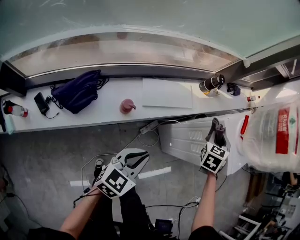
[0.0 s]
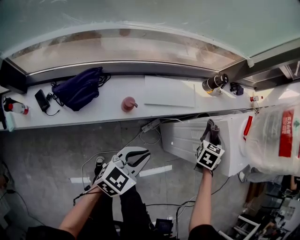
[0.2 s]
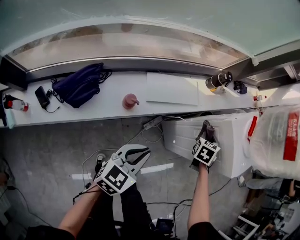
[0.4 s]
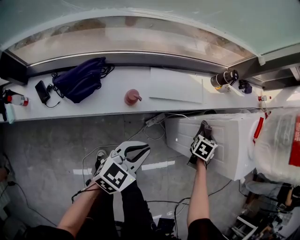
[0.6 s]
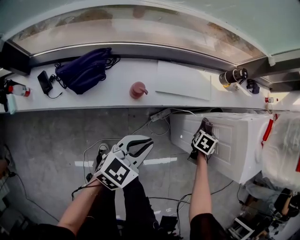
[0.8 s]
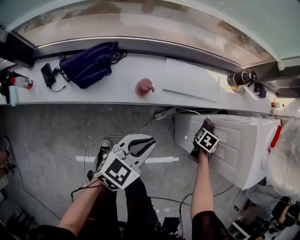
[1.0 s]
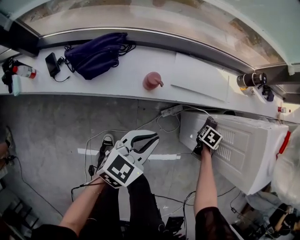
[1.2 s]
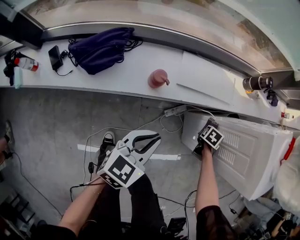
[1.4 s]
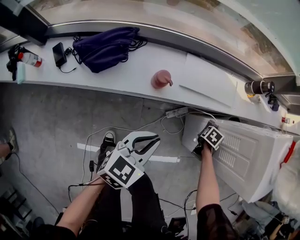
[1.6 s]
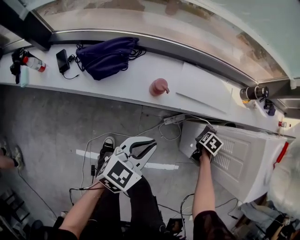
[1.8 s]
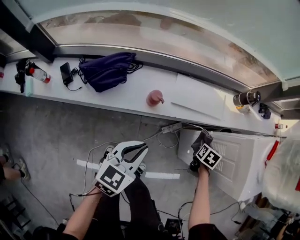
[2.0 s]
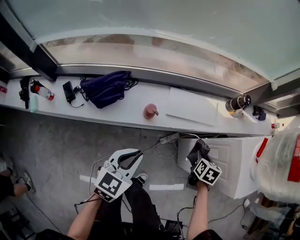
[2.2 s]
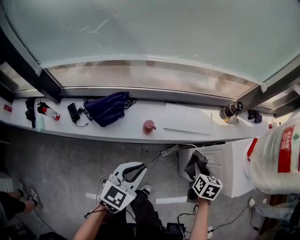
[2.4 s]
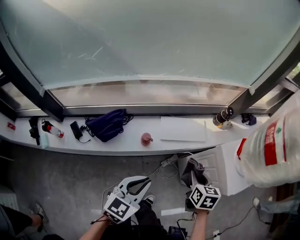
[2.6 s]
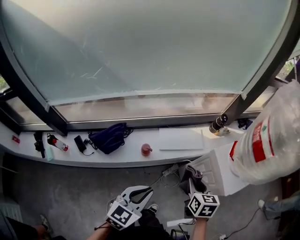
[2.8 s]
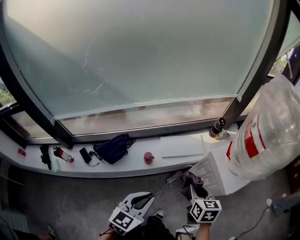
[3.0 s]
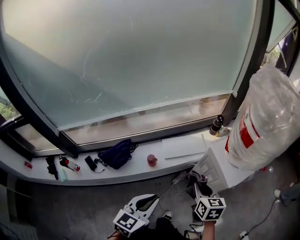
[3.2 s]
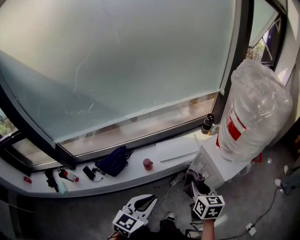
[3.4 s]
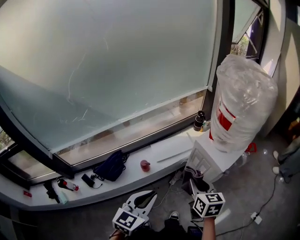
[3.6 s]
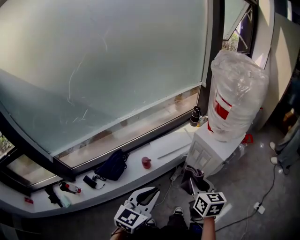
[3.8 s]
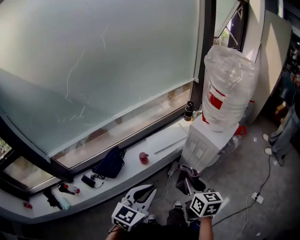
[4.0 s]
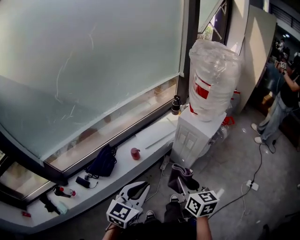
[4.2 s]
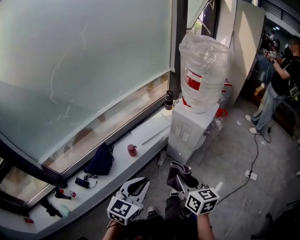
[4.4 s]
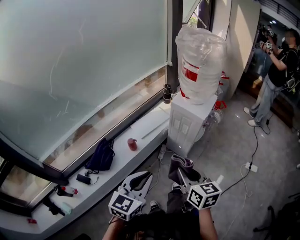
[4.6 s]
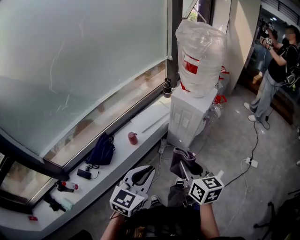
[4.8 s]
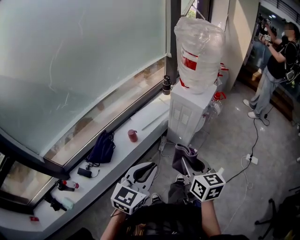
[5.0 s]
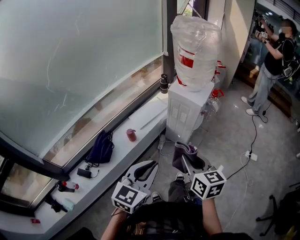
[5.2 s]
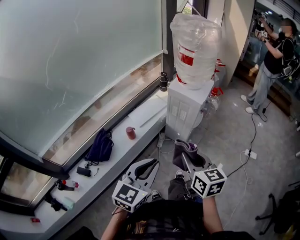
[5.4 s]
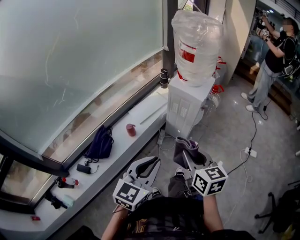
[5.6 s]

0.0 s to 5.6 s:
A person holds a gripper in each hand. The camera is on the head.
0.0 to 1.4 s: The right gripper shifts about 35 cm downward, and rotates roughly 30 degrees. The left gripper moves downward, some 10 cm.
1.4 to 2.8 s: The left gripper travels upward by some 30 cm; the right gripper is displaced upward by approximately 40 cm, and changes its angle by roughly 40 degrees.
2.8 to 4.2 s: The right gripper travels backward and upward by about 30 cm, and changes its angle by some 30 degrees; the left gripper travels backward and upward by approximately 20 cm, and rotates roughly 20 degrees.
4.2 to 5.6 s: The two grippers go some 5 cm backward.

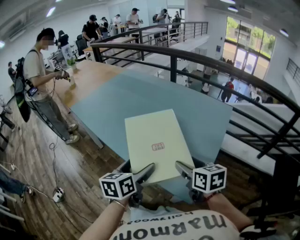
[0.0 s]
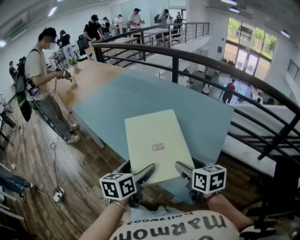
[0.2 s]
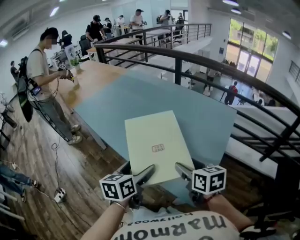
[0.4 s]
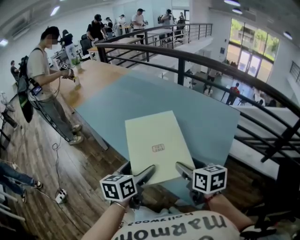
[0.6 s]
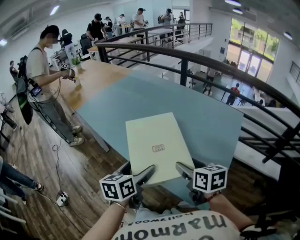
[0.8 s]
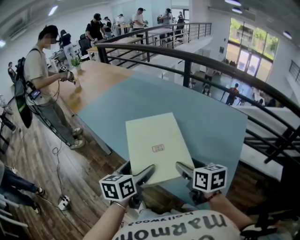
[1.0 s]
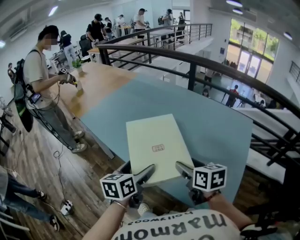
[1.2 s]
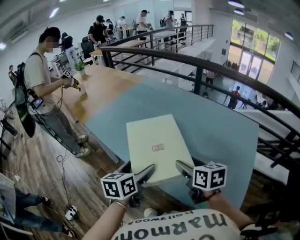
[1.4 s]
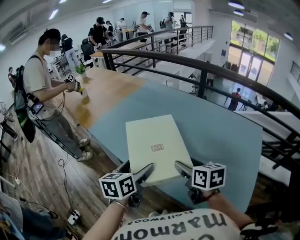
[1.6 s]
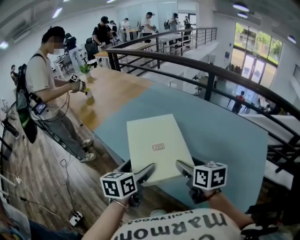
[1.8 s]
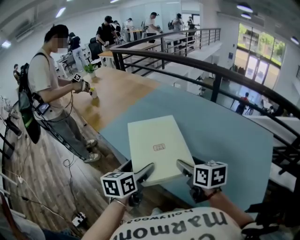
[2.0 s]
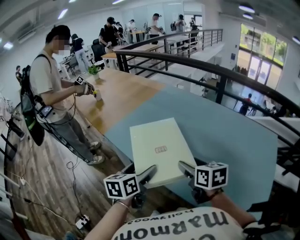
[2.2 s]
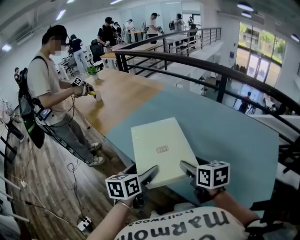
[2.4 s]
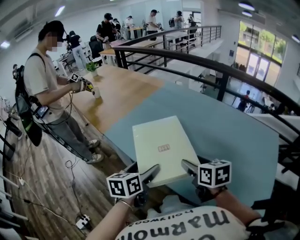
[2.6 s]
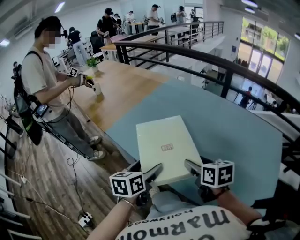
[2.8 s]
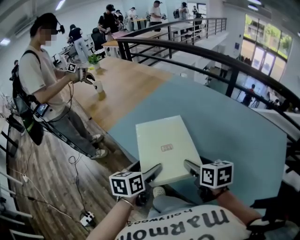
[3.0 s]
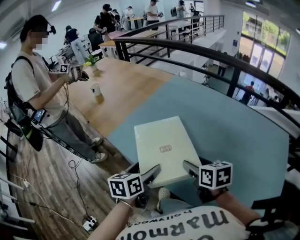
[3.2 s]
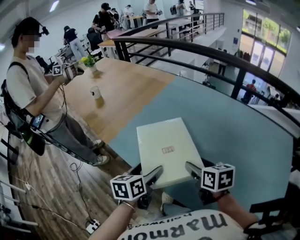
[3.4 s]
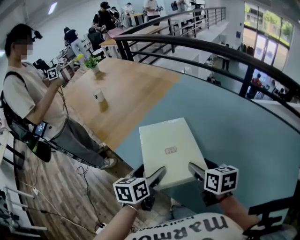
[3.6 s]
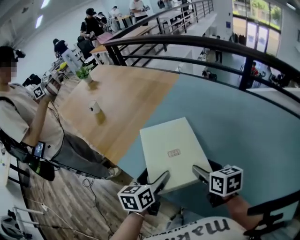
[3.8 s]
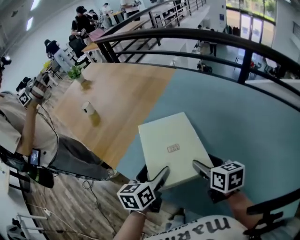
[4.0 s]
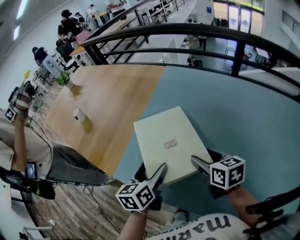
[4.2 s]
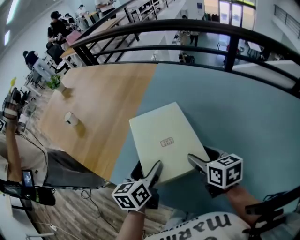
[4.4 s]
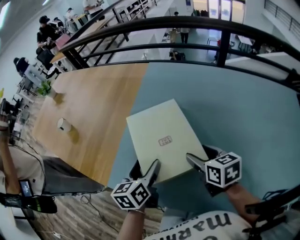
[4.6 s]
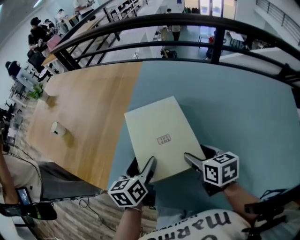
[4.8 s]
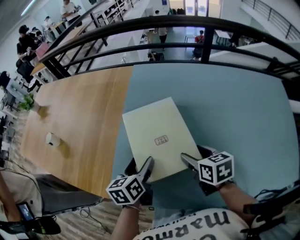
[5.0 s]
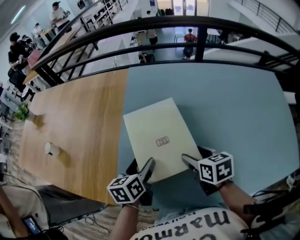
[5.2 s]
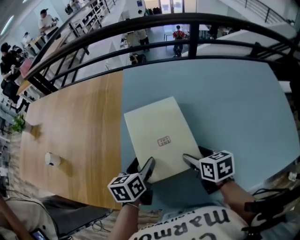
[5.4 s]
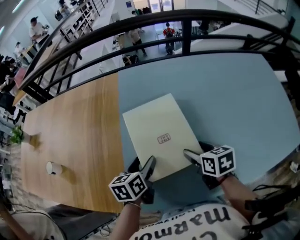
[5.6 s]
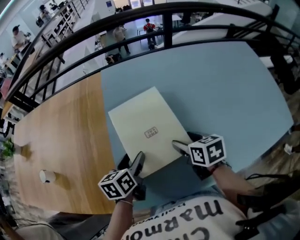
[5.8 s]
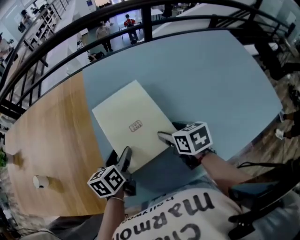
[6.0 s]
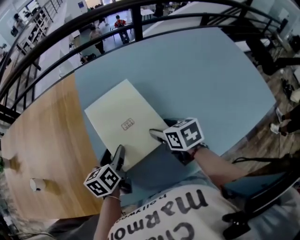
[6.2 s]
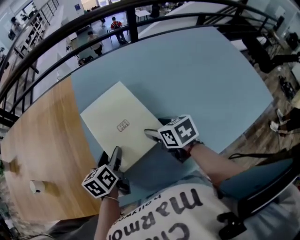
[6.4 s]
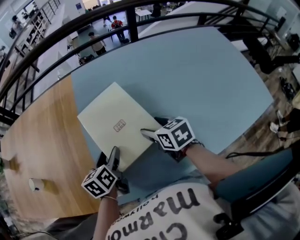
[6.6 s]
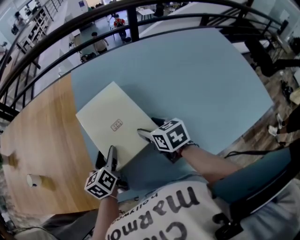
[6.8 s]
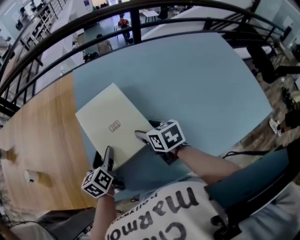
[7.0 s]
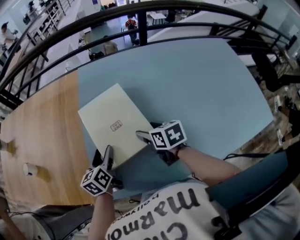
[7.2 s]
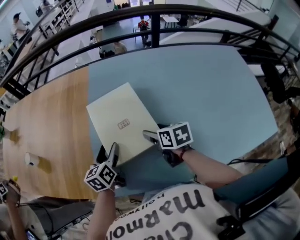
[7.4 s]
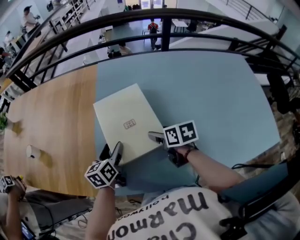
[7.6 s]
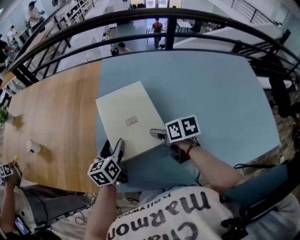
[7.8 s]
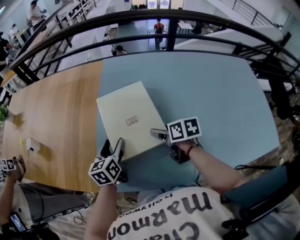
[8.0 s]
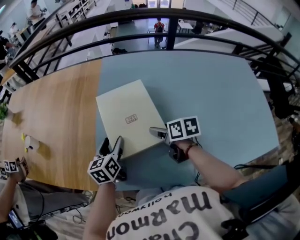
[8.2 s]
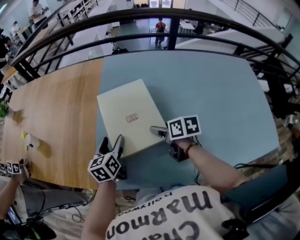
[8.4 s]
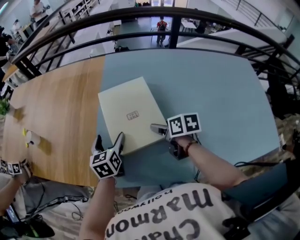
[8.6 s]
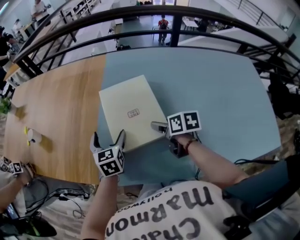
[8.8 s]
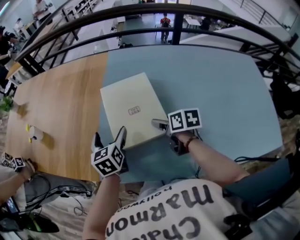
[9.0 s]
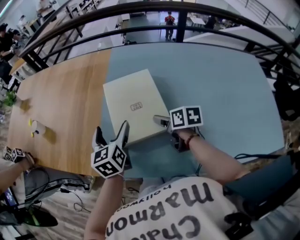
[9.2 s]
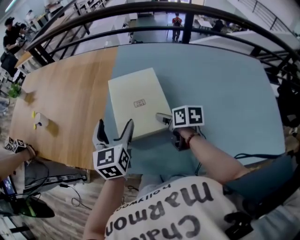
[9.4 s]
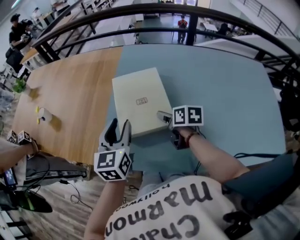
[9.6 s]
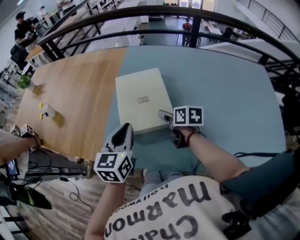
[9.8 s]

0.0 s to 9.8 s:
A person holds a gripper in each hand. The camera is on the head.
0.0 to 1.4 s: The two grippers go some 25 cm to the left and forward.
1.4 to 2.8 s: Both grippers move to the left and forward, about 15 cm.
2.8 to 4.2 s: Both grippers move forward, about 20 cm.
4.2 to 5.6 s: The right gripper shifts approximately 5 cm downward, and rotates roughly 30 degrees; the left gripper changes place by about 15 cm, and rotates about 30 degrees.
5.6 to 8.4 s: The grippers move only a little.
8.4 to 9.8 s: The left gripper moves upward and backward, some 15 cm, and closes up.

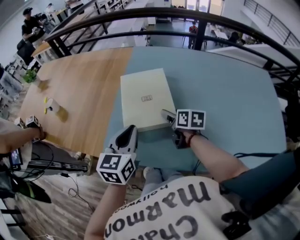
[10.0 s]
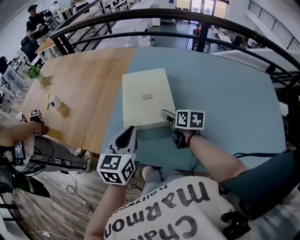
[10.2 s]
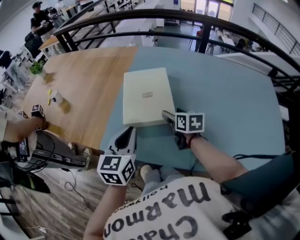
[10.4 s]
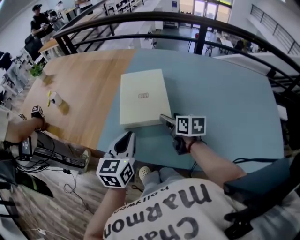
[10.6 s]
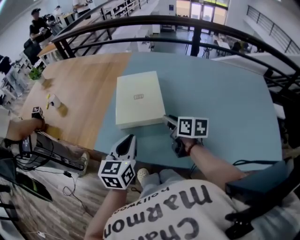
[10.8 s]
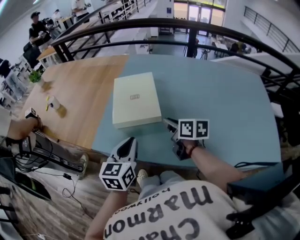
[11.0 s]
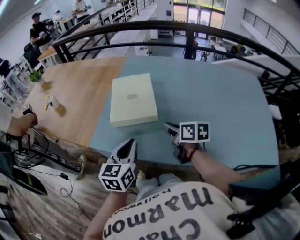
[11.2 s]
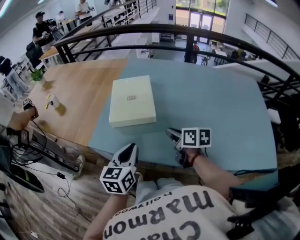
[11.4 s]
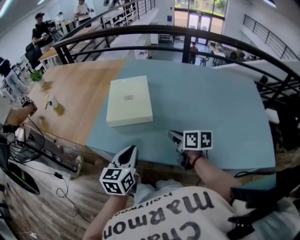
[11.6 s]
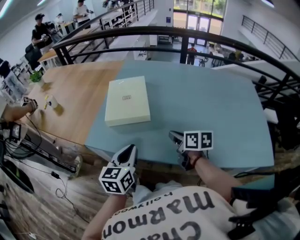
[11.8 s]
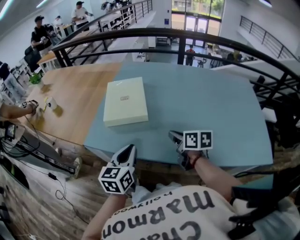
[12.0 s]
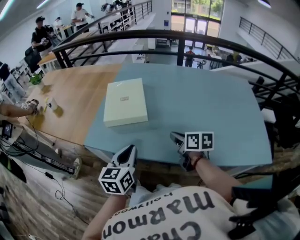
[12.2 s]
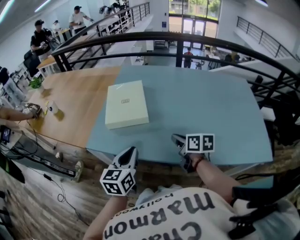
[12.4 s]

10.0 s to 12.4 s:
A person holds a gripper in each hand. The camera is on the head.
10.0 to 11.2 s: The two grippers go roughly 10 cm backward. The right gripper closes its fingers.
11.2 to 12.4 s: The right gripper heads backward and to the right, covering about 10 cm. Meanwhile the left gripper changes place by roughly 5 cm.

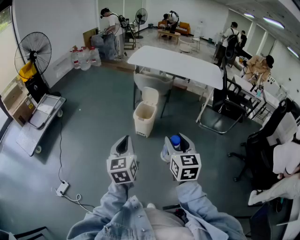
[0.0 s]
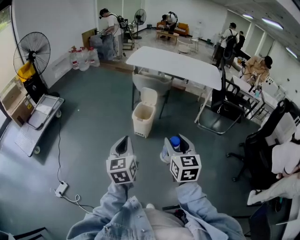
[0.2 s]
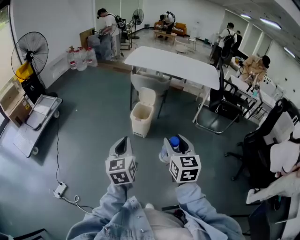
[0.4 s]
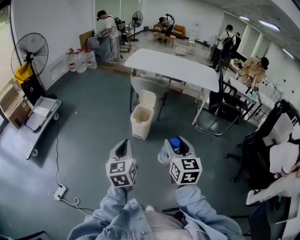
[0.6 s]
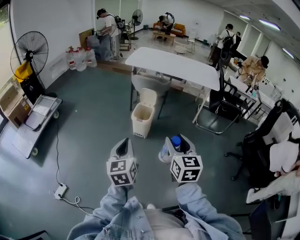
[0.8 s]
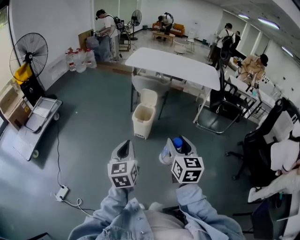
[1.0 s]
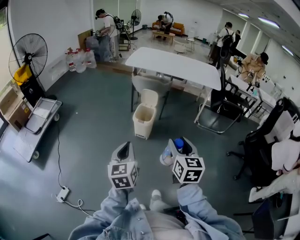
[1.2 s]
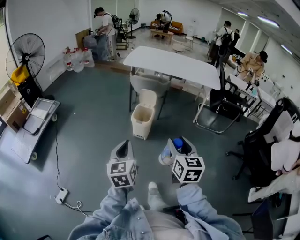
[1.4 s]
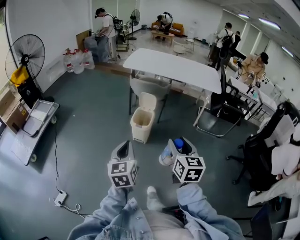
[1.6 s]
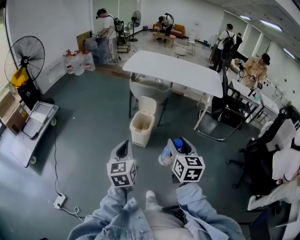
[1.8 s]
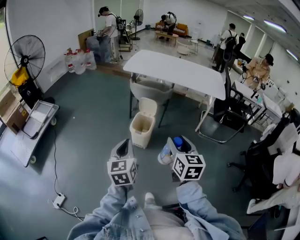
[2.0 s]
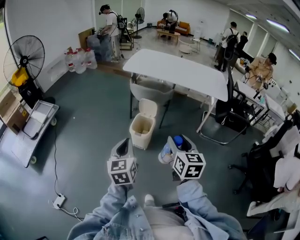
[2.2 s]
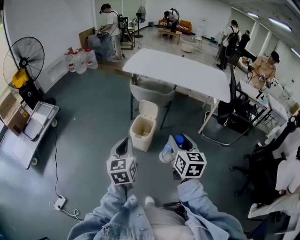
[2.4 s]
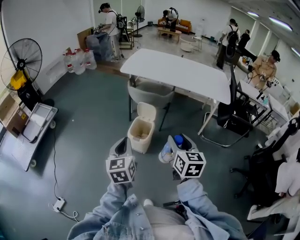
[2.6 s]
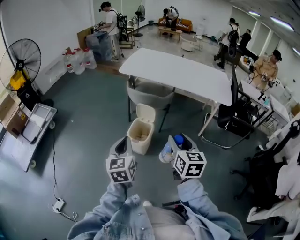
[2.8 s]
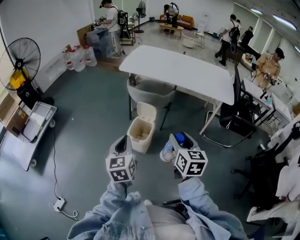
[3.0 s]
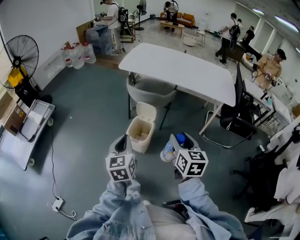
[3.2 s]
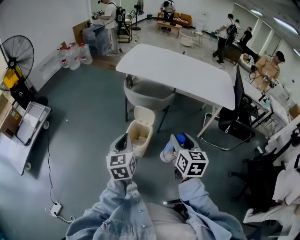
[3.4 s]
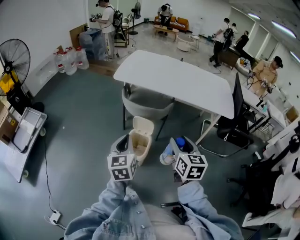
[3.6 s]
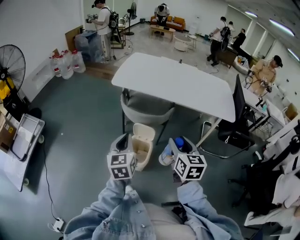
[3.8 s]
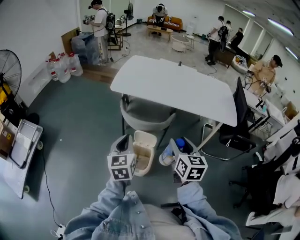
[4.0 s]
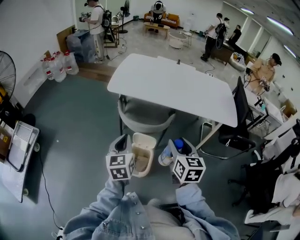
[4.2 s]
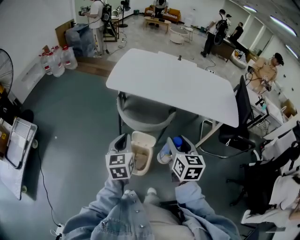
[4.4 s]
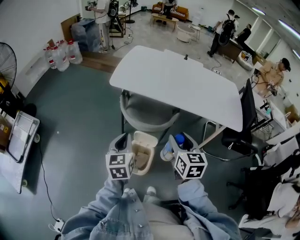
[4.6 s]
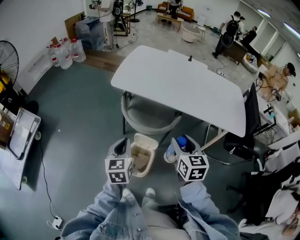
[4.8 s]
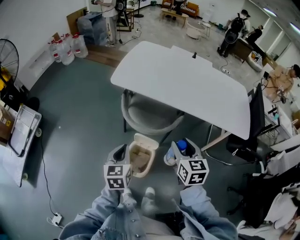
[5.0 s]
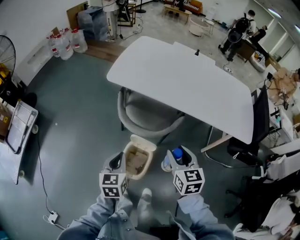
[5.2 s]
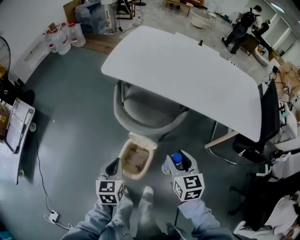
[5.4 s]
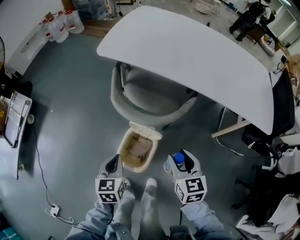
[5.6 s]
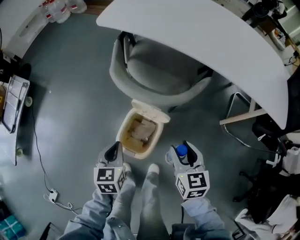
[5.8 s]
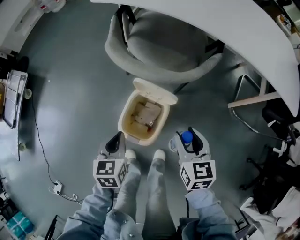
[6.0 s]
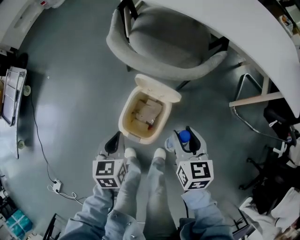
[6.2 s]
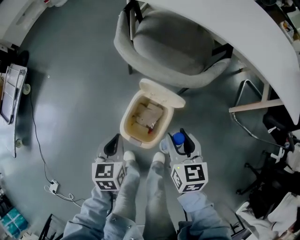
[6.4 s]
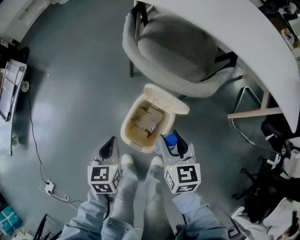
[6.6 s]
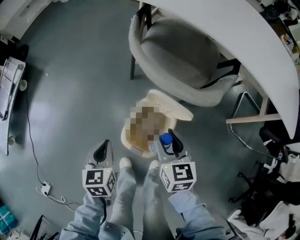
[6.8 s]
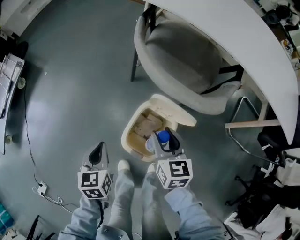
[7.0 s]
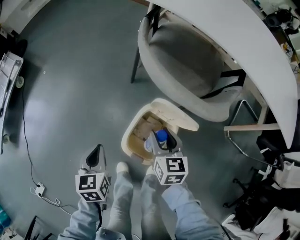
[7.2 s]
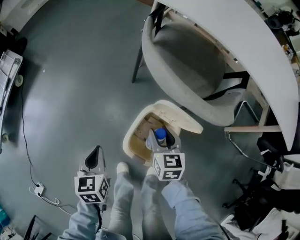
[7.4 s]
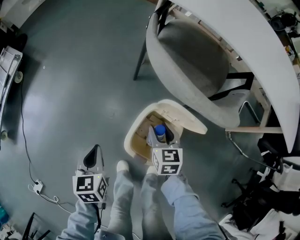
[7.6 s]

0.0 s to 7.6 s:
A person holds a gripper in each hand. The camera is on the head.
0.0 to 1.6 s: The two grippers go about 5 cm forward.
1.6 to 3.0 s: Both grippers move forward, about 25 cm.
3.0 to 4.6 s: Both grippers move forward, approximately 35 cm.
4.6 to 6.0 s: The two grippers go roughly 35 cm downward. The left gripper changes its angle by about 20 degrees.
6.0 to 7.6 s: The right gripper moves to the left, downward and forward, approximately 25 cm, while the left gripper is displaced to the left and downward by about 20 cm.
